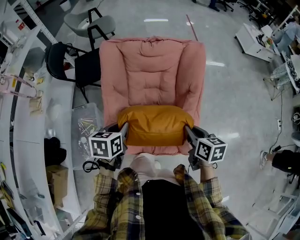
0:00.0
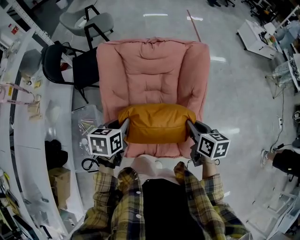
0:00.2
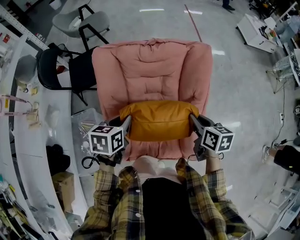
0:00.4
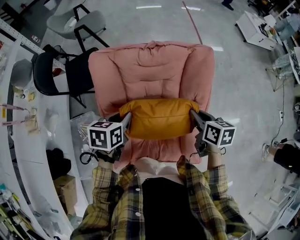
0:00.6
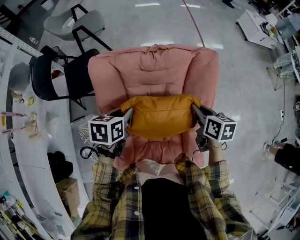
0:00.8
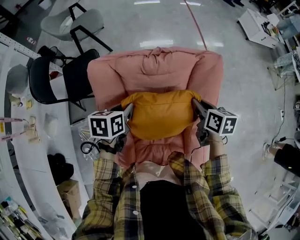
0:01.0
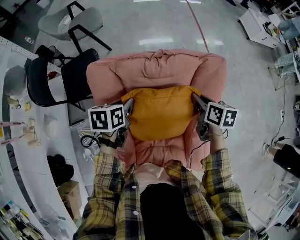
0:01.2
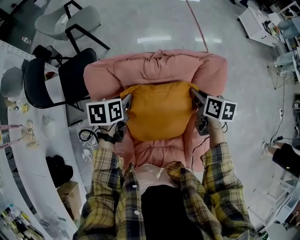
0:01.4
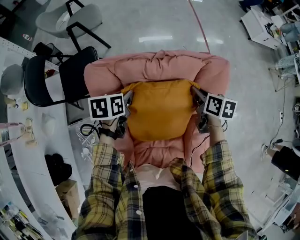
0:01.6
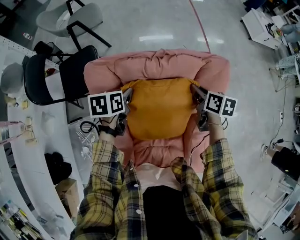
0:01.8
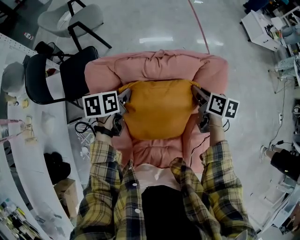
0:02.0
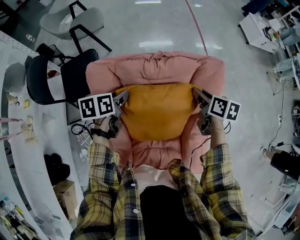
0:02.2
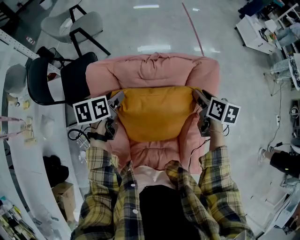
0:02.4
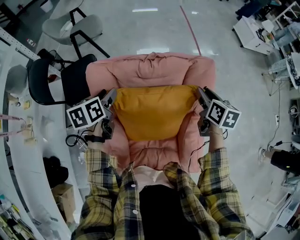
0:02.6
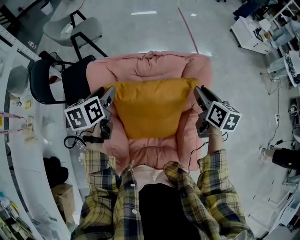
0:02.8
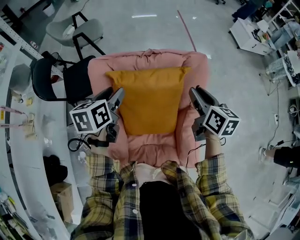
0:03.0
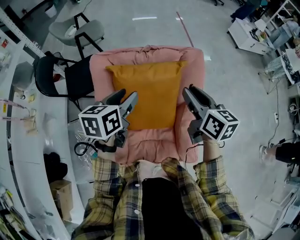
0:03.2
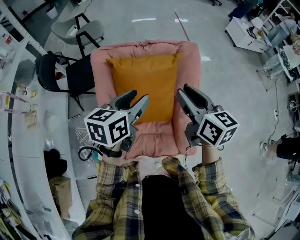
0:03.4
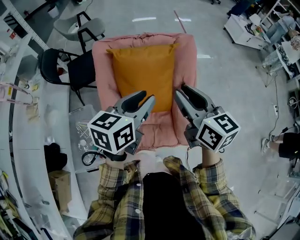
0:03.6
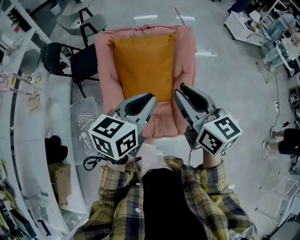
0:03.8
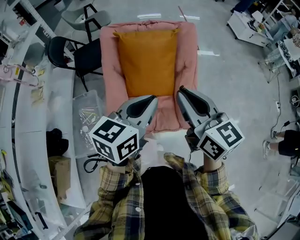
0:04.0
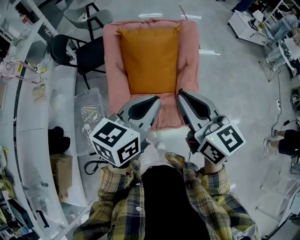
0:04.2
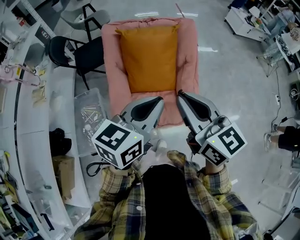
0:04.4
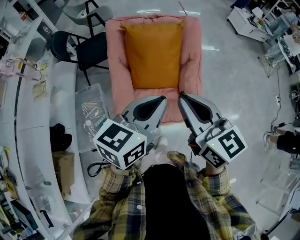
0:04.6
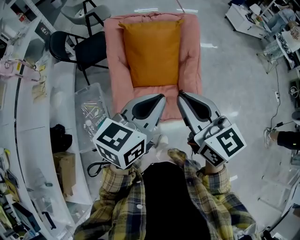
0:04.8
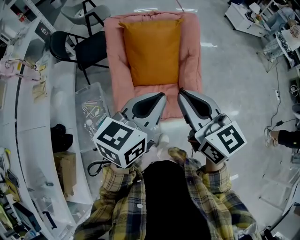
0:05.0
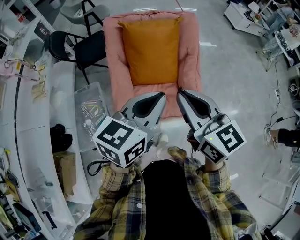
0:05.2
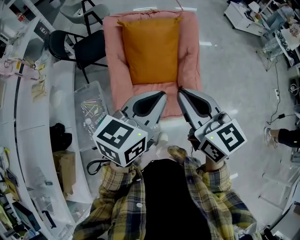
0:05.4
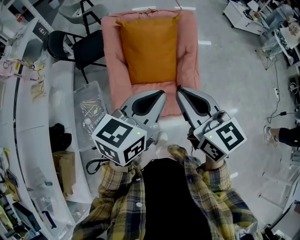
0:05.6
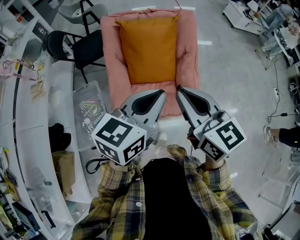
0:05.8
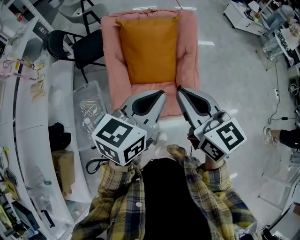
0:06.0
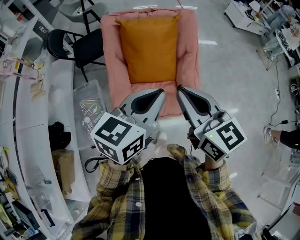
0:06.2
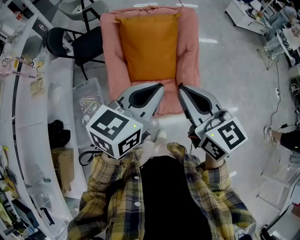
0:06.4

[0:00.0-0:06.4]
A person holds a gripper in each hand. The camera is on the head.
0:00.0 to 0:01.6: The two grippers go roughly 35 cm forward.
0:01.6 to 0:03.2: The left gripper travels upward, backward and to the right by approximately 25 cm, swivels some 20 degrees, and opens up. Meanwhile the right gripper is displaced upward and backward by about 25 cm, rotates approximately 30 degrees, and opens.
0:03.2 to 0:04.8: The grippers both shift backward by some 35 cm. The right gripper rotates approximately 20 degrees, and closes. Meanwhile the left gripper turns by some 20 degrees, and closes.
0:04.8 to 0:06.4: The grippers move only a little.

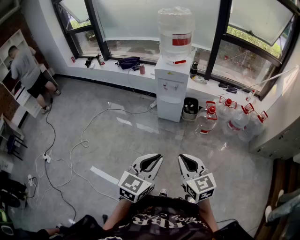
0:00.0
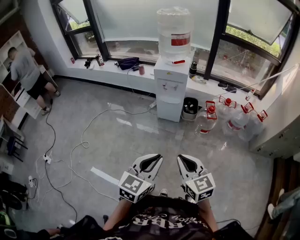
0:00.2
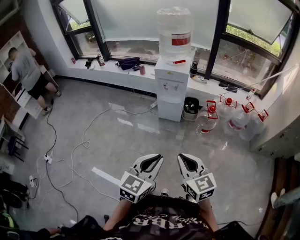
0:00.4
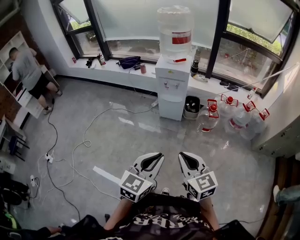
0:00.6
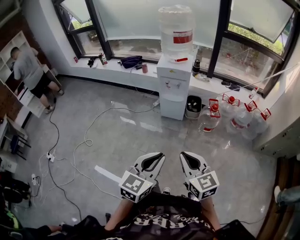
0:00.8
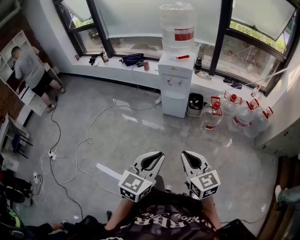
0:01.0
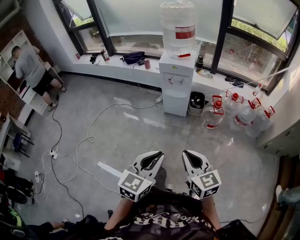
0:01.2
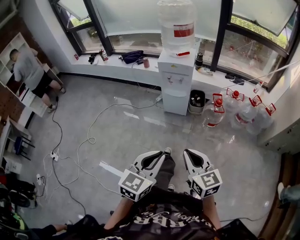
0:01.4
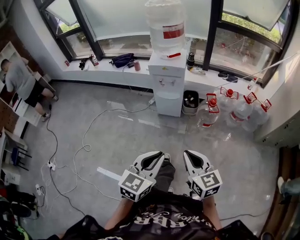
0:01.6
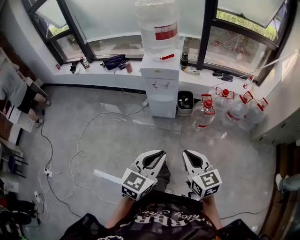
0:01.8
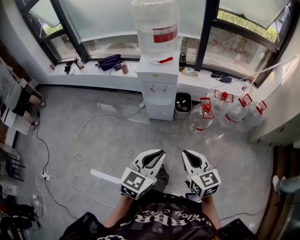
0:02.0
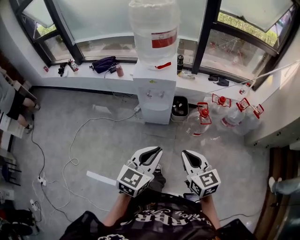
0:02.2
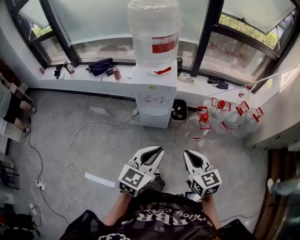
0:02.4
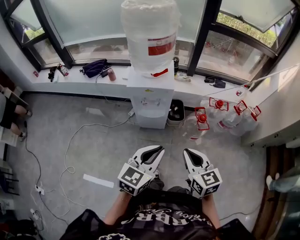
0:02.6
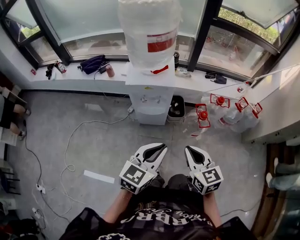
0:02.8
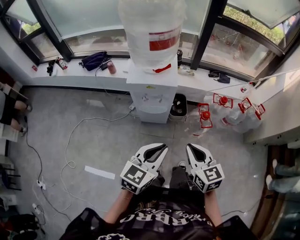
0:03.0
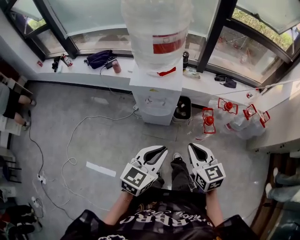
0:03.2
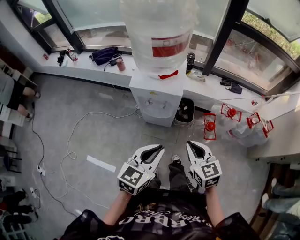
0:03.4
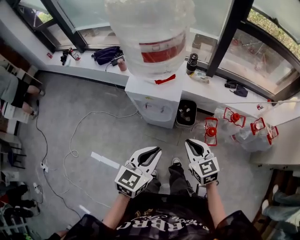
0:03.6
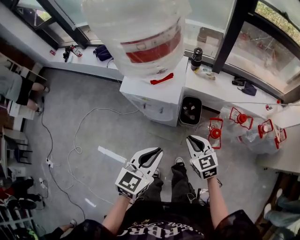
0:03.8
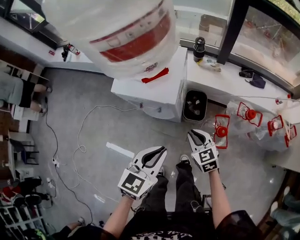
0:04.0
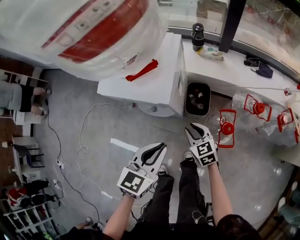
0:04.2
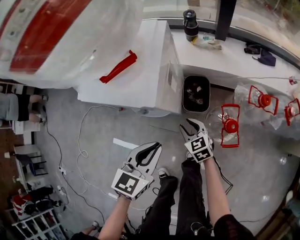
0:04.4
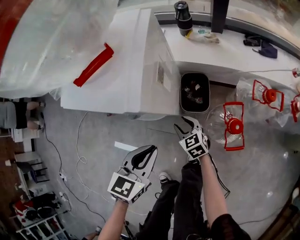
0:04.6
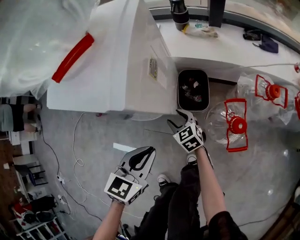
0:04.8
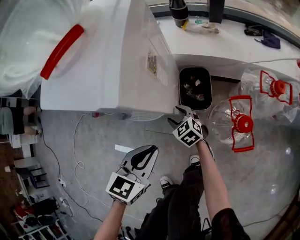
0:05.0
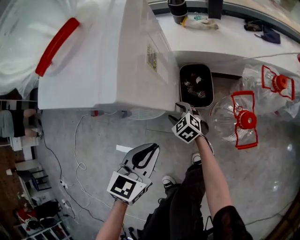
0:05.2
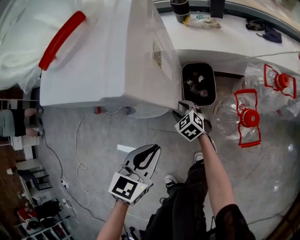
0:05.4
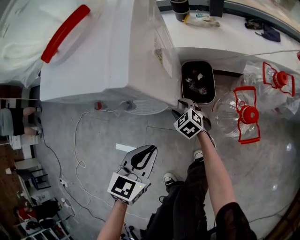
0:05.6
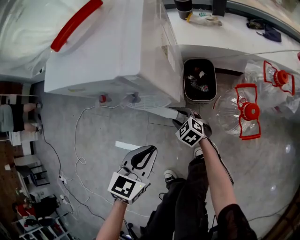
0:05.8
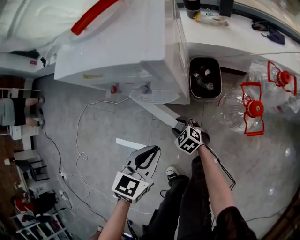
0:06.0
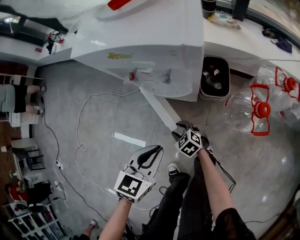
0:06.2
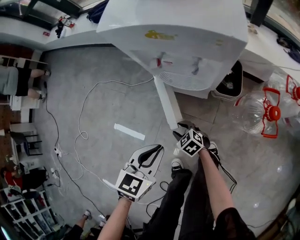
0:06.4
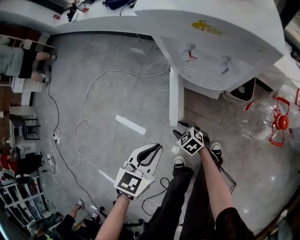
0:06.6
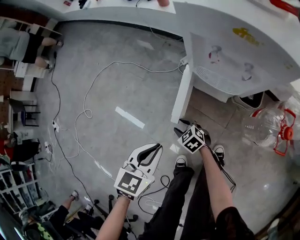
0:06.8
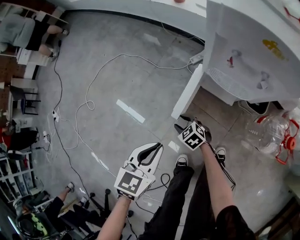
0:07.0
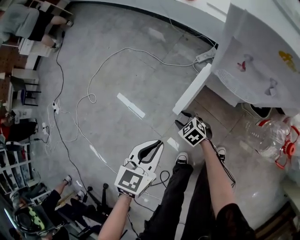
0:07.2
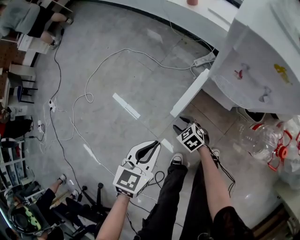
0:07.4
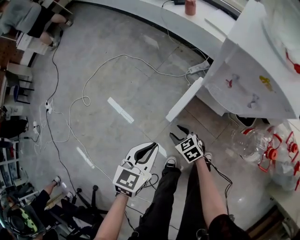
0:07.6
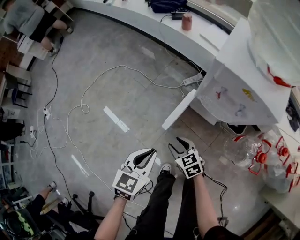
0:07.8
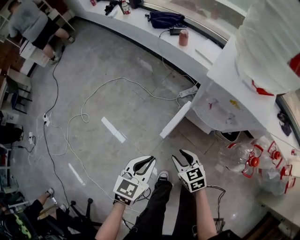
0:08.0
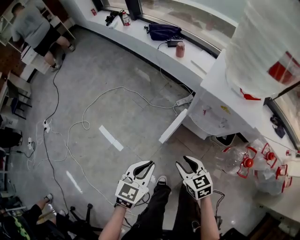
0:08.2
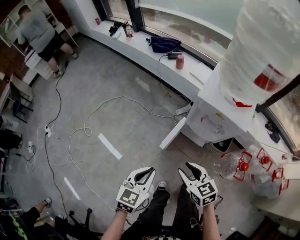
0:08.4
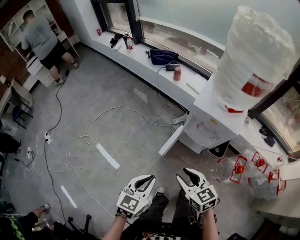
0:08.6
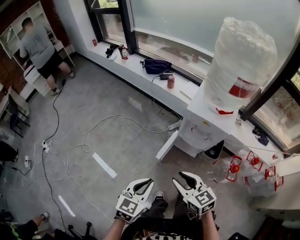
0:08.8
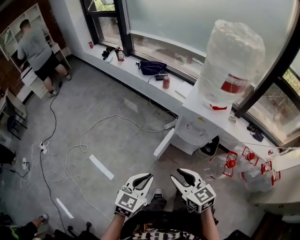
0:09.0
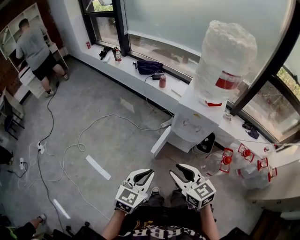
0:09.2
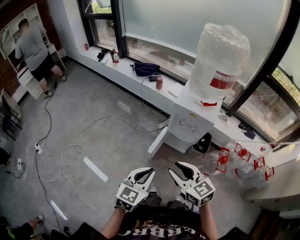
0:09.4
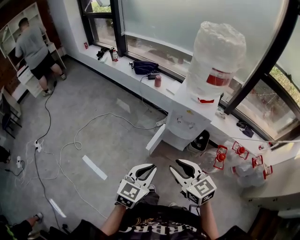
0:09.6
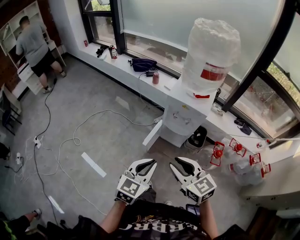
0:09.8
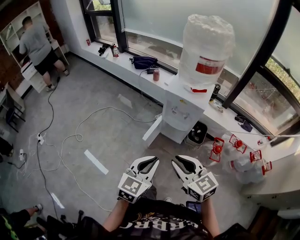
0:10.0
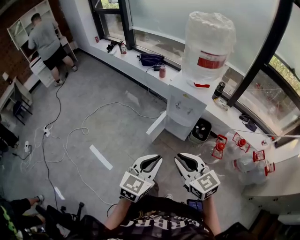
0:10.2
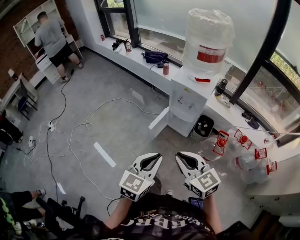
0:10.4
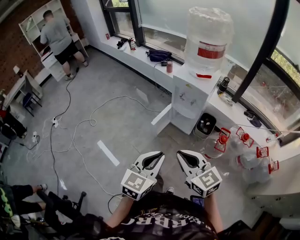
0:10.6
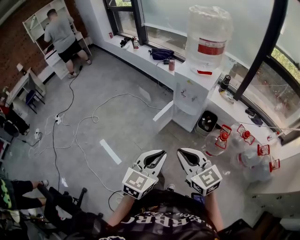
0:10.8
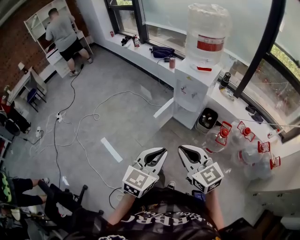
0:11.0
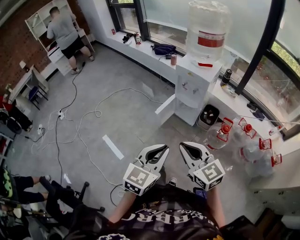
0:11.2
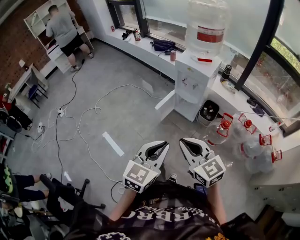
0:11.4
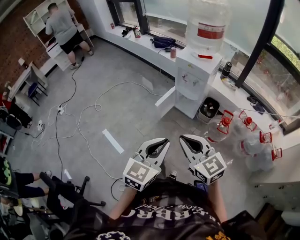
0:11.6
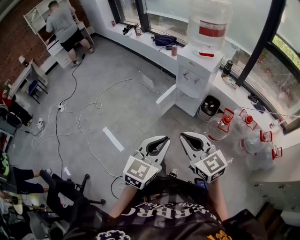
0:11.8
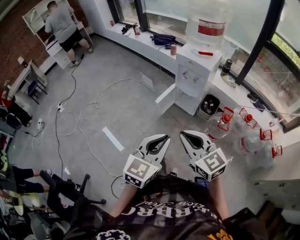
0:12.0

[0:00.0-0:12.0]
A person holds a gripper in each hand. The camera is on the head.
0:00.0 to 0:01.6: The two grippers go roughly 5 cm forward.
0:01.6 to 0:03.0: The two grippers go approximately 35 cm forward.
0:03.0 to 0:04.4: The left gripper heads downward, forward and to the right, covering roughly 35 cm, and rotates roughly 20 degrees. Meanwhile the right gripper travels downward and forward by about 50 cm, rotates some 20 degrees, and opens.
0:04.4 to 0:06.0: The left gripper heads downward, to the left and backward, covering approximately 20 cm; the right gripper heads downward and to the left, covering roughly 25 cm, and changes its angle by roughly 20 degrees.
0:06.0 to 0:07.6: The right gripper changes place by roughly 30 cm. Meanwhile the left gripper changes place by approximately 30 cm, and turns by about 30 degrees.
0:07.6 to 0:09.0: The right gripper heads upward, covering approximately 50 cm, and swivels roughly 30 degrees, while the left gripper goes roughly 30 cm upward.
0:09.0 to 0:10.4: The grippers both shift backward, to the right and upward by about 25 cm. The right gripper closes its fingers.
0:10.4 to 0:12.0: Both grippers travel together backward, about 10 cm.

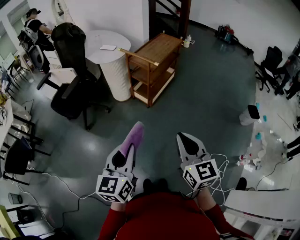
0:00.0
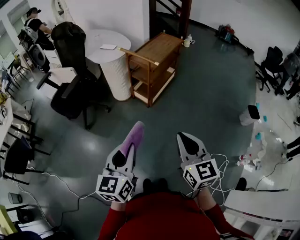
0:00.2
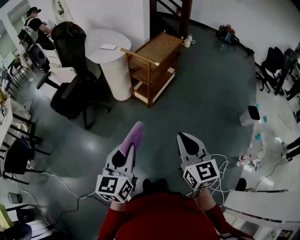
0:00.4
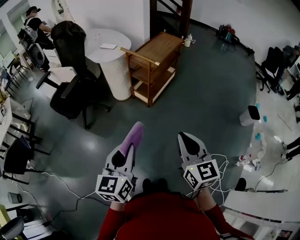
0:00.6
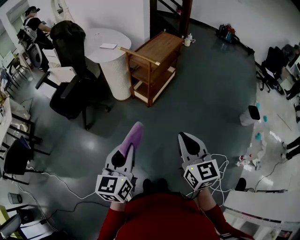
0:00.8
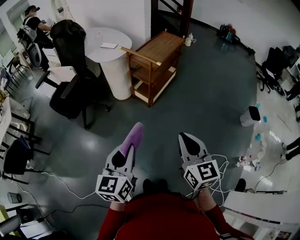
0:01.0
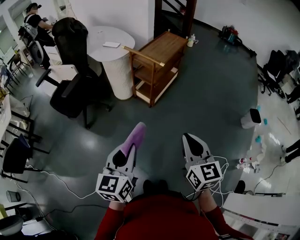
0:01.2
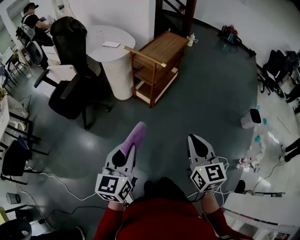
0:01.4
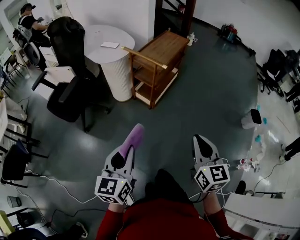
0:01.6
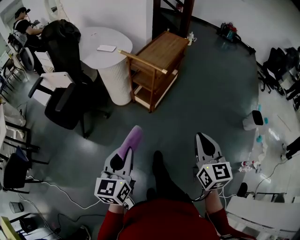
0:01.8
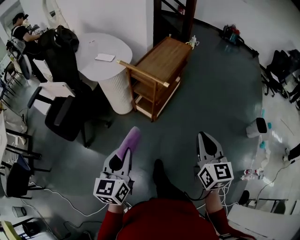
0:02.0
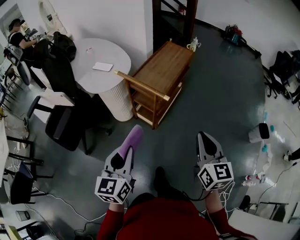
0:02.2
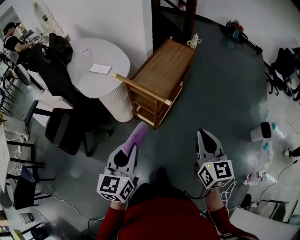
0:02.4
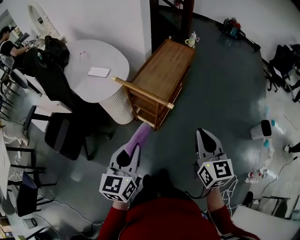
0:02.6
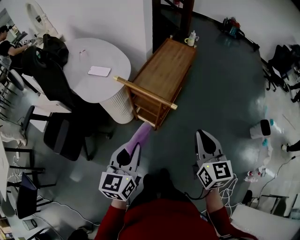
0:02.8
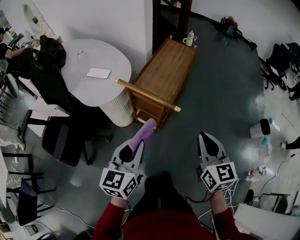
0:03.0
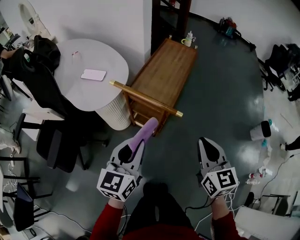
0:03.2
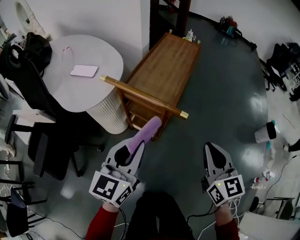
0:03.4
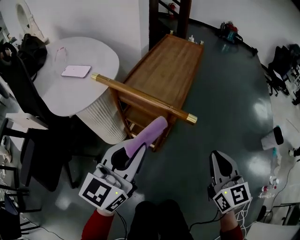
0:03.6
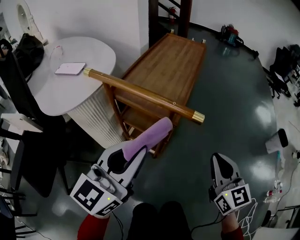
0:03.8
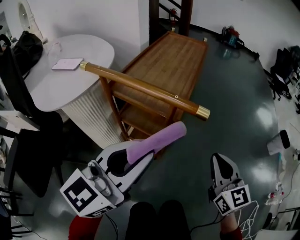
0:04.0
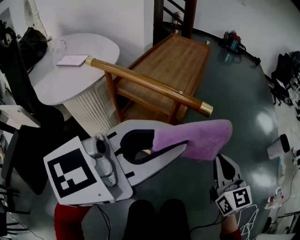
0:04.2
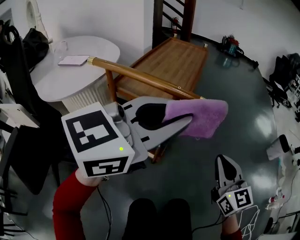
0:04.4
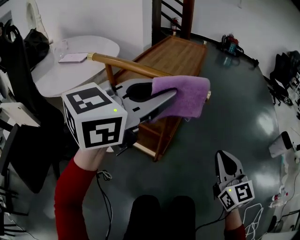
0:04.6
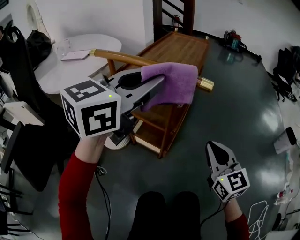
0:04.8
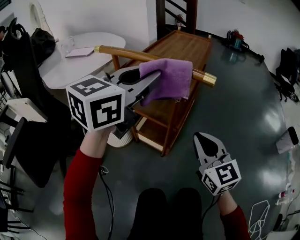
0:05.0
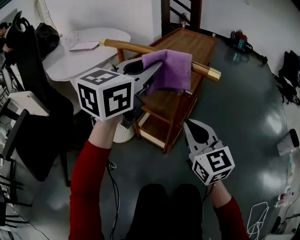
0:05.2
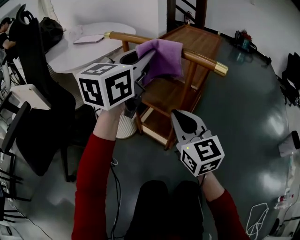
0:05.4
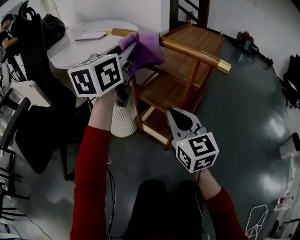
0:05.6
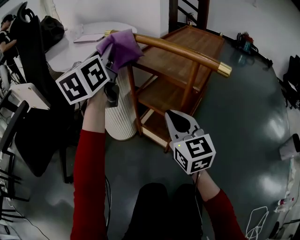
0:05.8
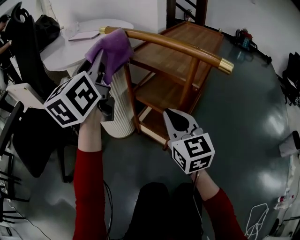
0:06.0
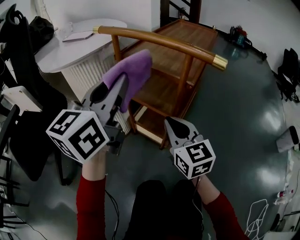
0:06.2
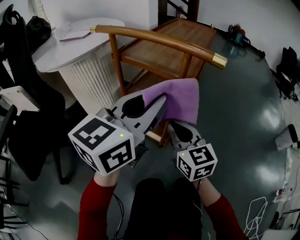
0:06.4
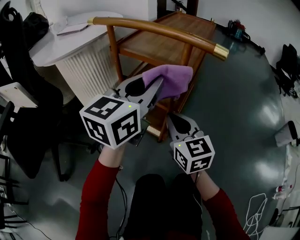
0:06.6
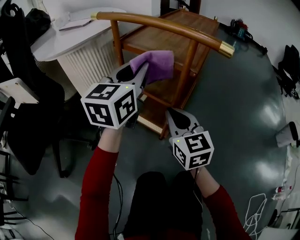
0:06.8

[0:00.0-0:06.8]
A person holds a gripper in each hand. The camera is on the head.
0:00.0 to 0:01.4: The right gripper shifts by approximately 5 cm, while the left gripper moves forward, some 5 cm.
0:01.4 to 0:02.8: The two grippers go roughly 30 cm forward.
0:02.8 to 0:04.0: The right gripper goes some 25 cm downward. The left gripper travels forward and downward by roughly 15 cm, and swivels about 40 degrees.
0:04.0 to 0:05.4: The left gripper shifts by approximately 15 cm. The right gripper ends up about 20 cm from where it was.
0:05.4 to 0:06.8: The left gripper goes left and right, approximately 15 cm each way, reversing 2 times. Meanwhile the right gripper is displaced downward by approximately 10 cm.
